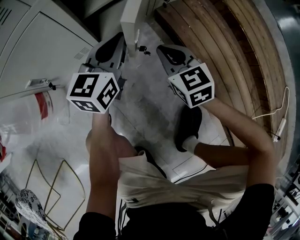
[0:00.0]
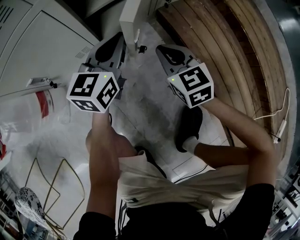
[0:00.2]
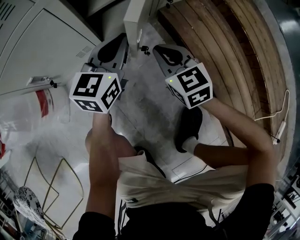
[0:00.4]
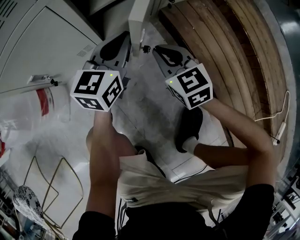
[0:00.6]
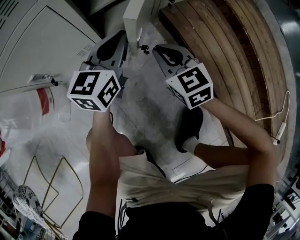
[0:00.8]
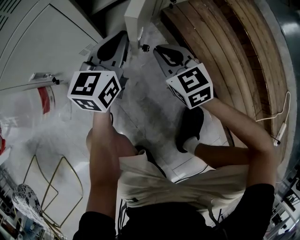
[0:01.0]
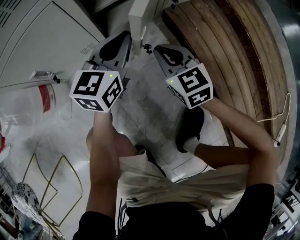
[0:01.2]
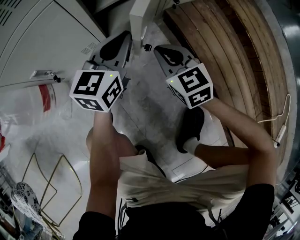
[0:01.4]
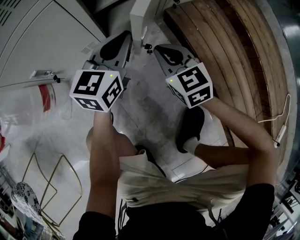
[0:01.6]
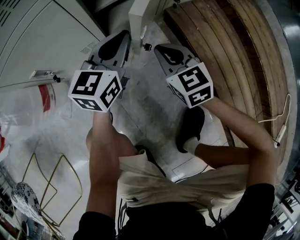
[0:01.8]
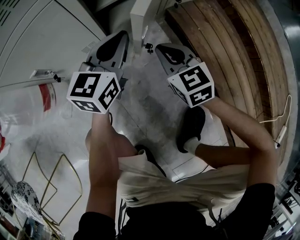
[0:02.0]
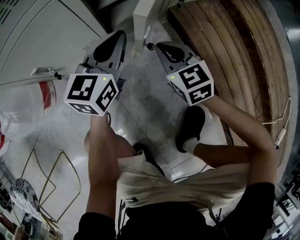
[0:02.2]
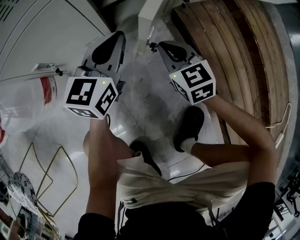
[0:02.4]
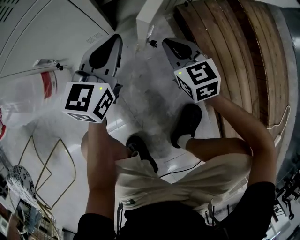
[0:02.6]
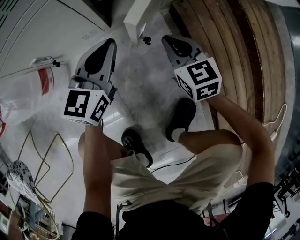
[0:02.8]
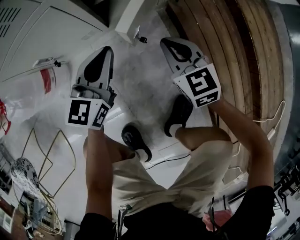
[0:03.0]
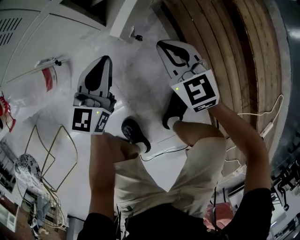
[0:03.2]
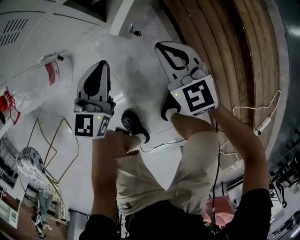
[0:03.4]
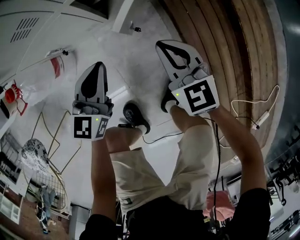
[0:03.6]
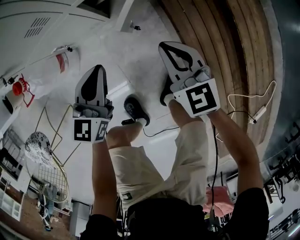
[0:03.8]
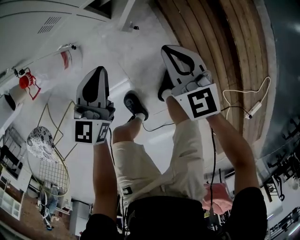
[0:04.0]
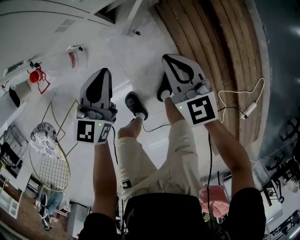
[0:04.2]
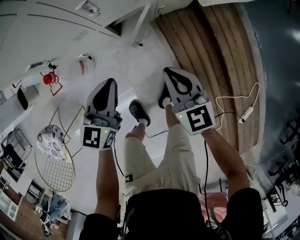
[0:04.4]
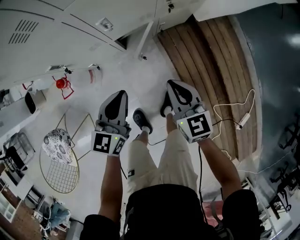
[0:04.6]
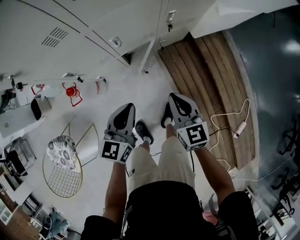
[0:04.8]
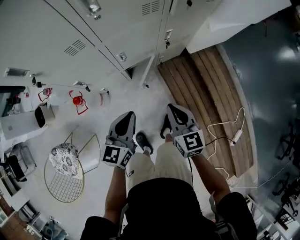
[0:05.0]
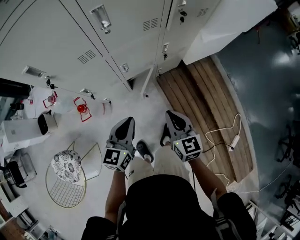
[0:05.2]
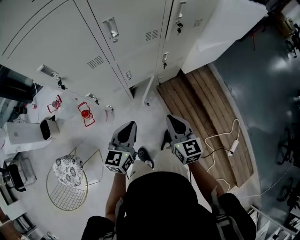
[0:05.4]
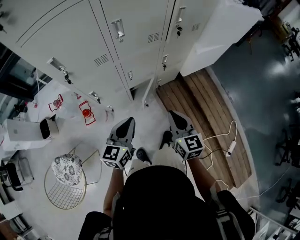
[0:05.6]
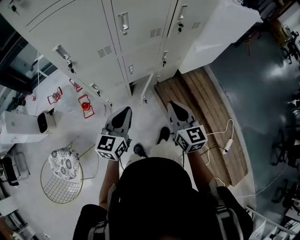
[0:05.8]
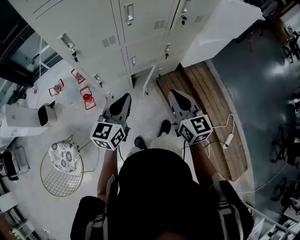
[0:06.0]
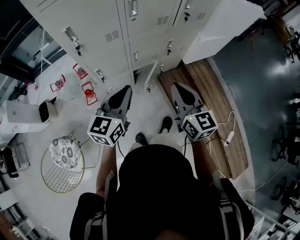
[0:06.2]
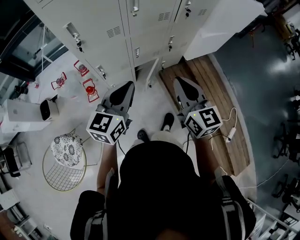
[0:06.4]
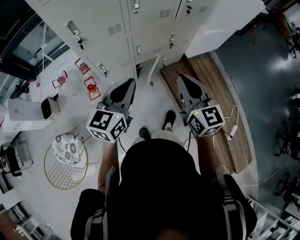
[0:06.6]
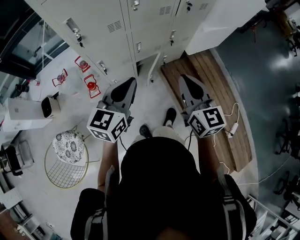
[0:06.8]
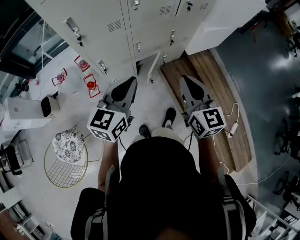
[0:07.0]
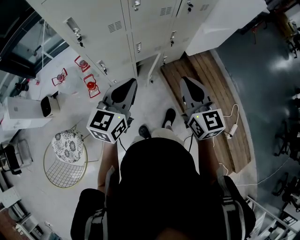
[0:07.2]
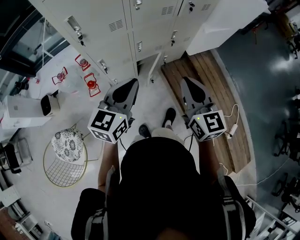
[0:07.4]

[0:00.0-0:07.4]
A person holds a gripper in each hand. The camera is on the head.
0.0 to 1.4 s: The grippers stay close to where they were, moving slightly.
1.4 to 3.0 s: The left gripper shifts by about 5 cm, while the right gripper heads upward, covering about 5 cm.
3.0 to 4.4 s: The grippers both shift upward by about 40 cm.
4.4 to 6.0 s: The grippers both shift upward by about 35 cm. The right gripper swivels roughly 20 degrees.
6.0 to 7.4 s: The right gripper moves approximately 5 cm. Meanwhile the left gripper moves about 5 cm.

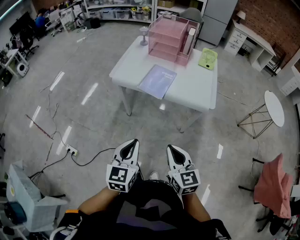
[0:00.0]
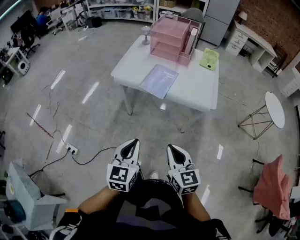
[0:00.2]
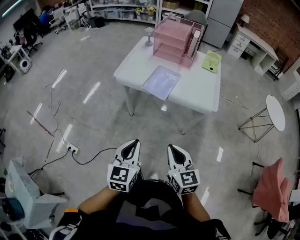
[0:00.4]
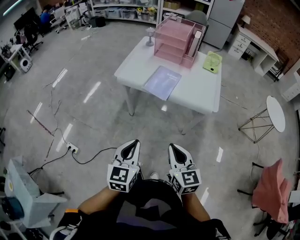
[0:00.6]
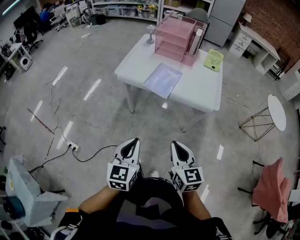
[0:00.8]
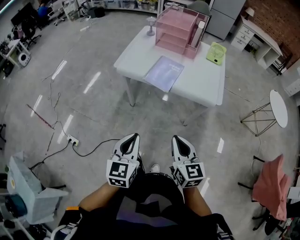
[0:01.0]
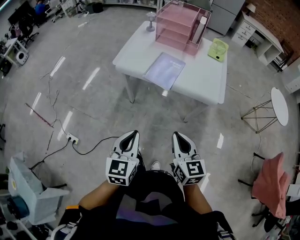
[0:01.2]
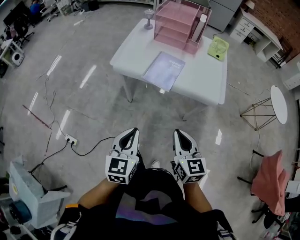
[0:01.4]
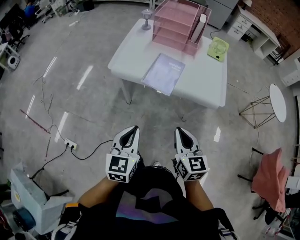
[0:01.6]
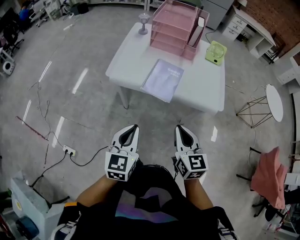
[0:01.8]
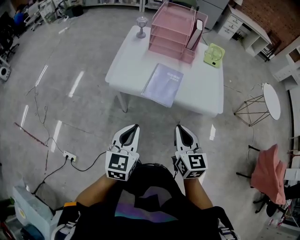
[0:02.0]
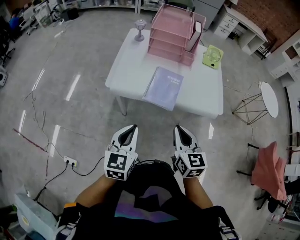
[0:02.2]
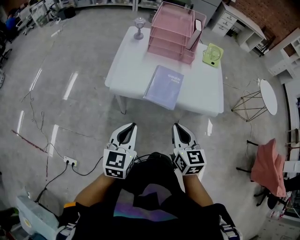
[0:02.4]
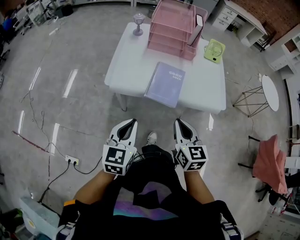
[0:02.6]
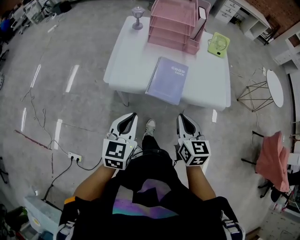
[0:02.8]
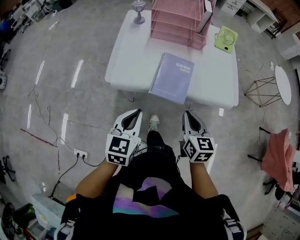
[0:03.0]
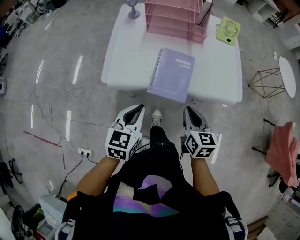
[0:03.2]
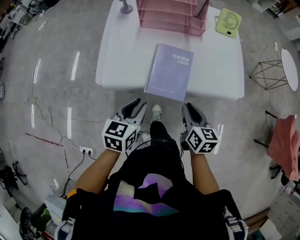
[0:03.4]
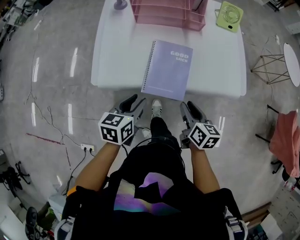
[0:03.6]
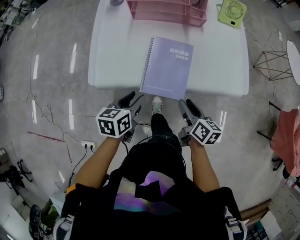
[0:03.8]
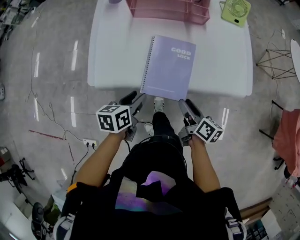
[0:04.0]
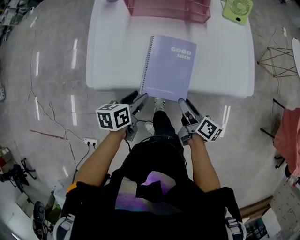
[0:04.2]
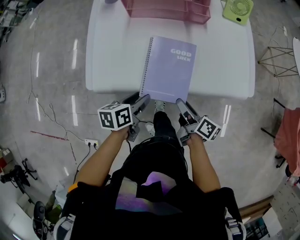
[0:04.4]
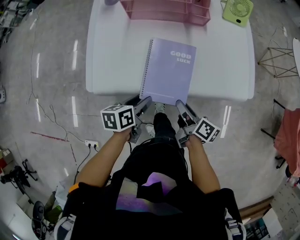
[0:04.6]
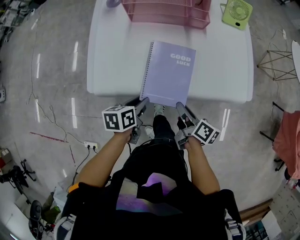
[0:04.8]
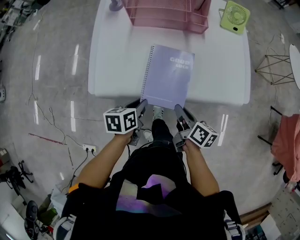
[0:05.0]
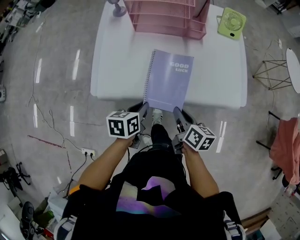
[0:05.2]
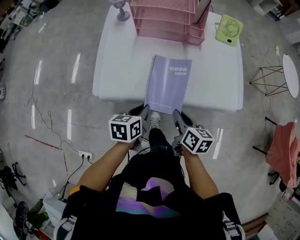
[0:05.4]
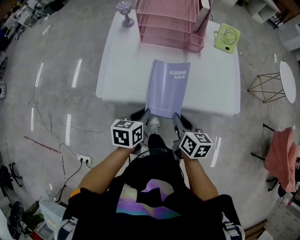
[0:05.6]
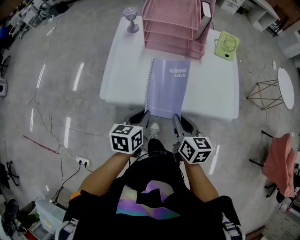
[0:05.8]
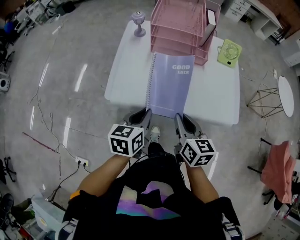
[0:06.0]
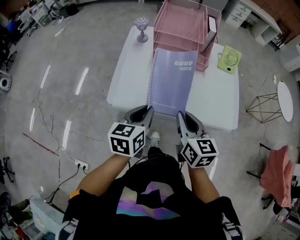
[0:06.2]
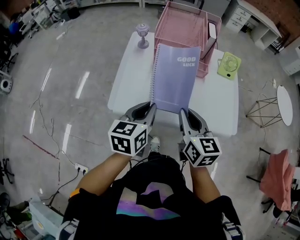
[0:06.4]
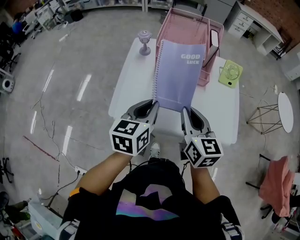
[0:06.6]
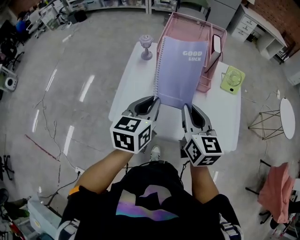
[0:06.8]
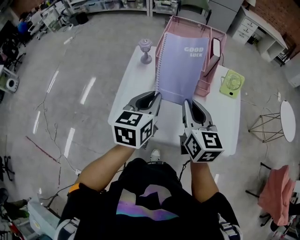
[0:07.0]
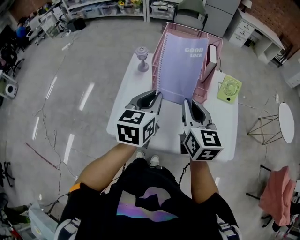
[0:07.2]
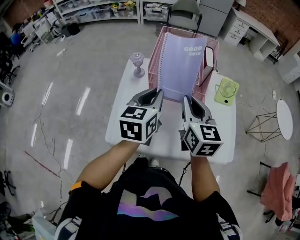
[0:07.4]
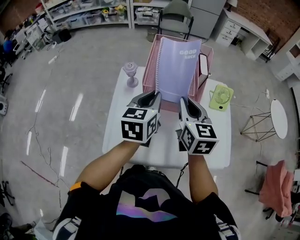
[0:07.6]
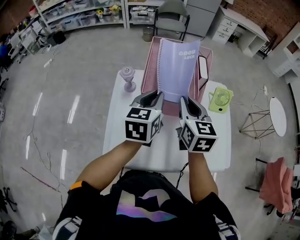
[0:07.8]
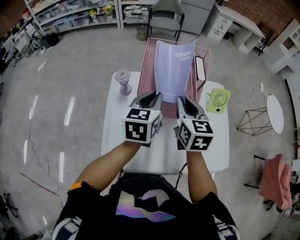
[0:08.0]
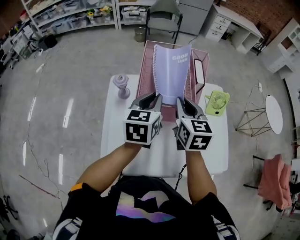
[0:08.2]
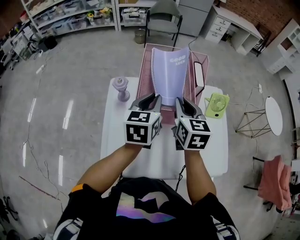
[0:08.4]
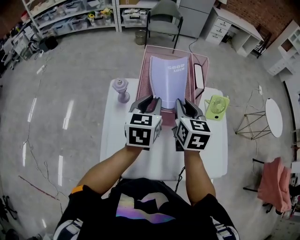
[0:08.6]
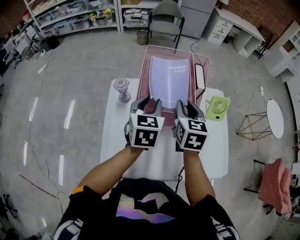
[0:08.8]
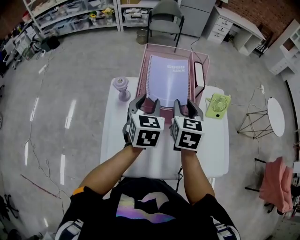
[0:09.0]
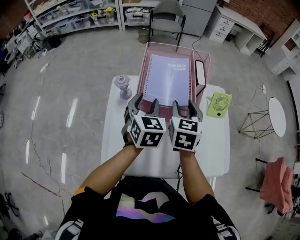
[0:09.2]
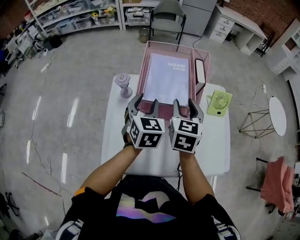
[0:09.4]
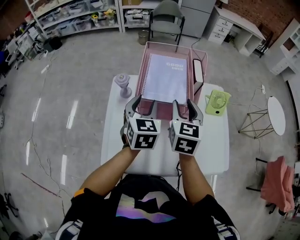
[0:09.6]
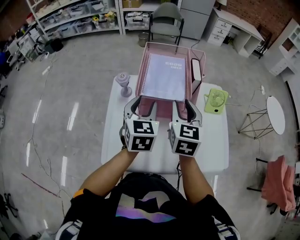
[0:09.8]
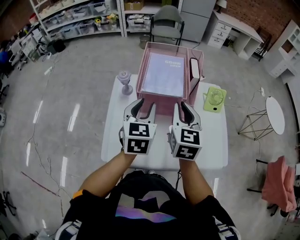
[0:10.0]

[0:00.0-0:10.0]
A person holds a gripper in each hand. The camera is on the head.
0.0 to 1.4 s: The two grippers go roughly 5 cm forward.
1.4 to 2.8 s: Both grippers travel together forward and to the left, roughly 20 cm.
2.8 to 4.2 s: The two grippers go about 25 cm downward and forward. The right gripper rotates around the line of its fingers by about 60 degrees, clockwise from behind, and opens up; the left gripper swivels approximately 50 degrees, and opens.
4.2 to 5.8 s: The grippers both shift upward by about 10 cm. The right gripper rotates around the line of its fingers by about 40 degrees, counterclockwise from behind, and closes. The left gripper closes.
5.8 to 7.2 s: The two grippers go roughly 25 cm forward and upward. The left gripper rotates approximately 20 degrees. Meanwhile the right gripper turns by roughly 20 degrees.
7.2 to 8.6 s: The two grippers go approximately 20 cm forward.
8.6 to 10.0 s: Both grippers travel together backward, approximately 10 cm. The right gripper opens, then closes again.

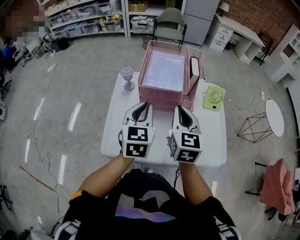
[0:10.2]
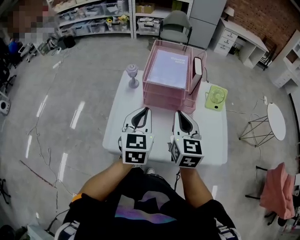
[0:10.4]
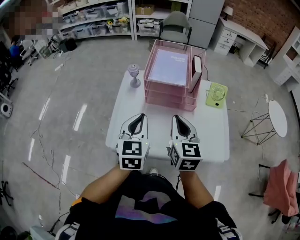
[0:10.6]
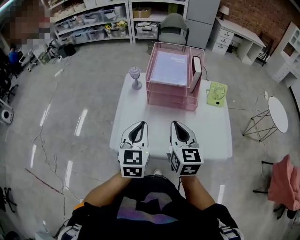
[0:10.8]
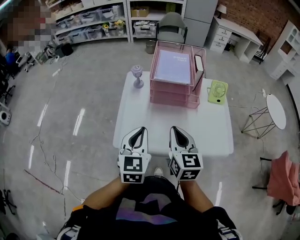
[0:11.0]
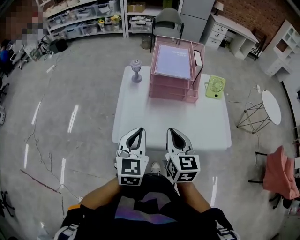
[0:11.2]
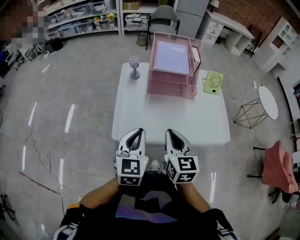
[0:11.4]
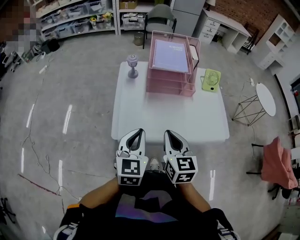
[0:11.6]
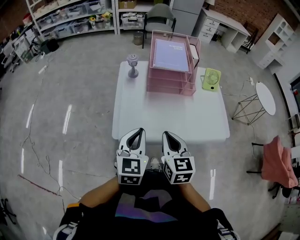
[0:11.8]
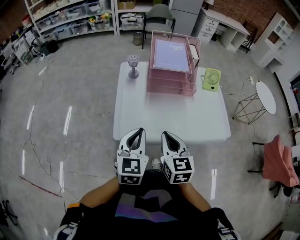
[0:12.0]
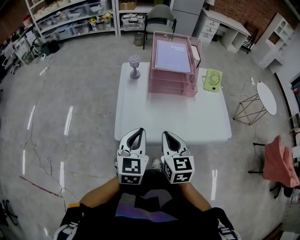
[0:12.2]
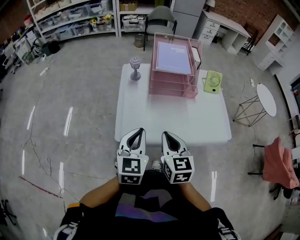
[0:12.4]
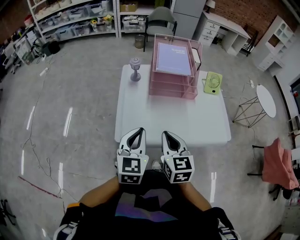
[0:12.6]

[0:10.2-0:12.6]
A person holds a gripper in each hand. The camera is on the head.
10.2 to 11.4 s: The grippers both shift backward and to the left by about 20 cm.
11.4 to 12.6 s: The grippers move only a little.

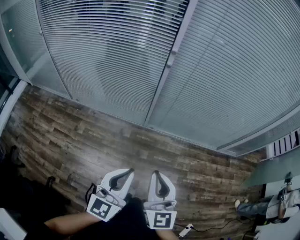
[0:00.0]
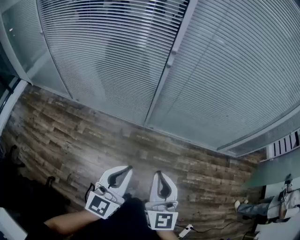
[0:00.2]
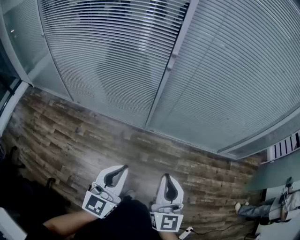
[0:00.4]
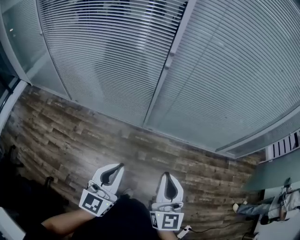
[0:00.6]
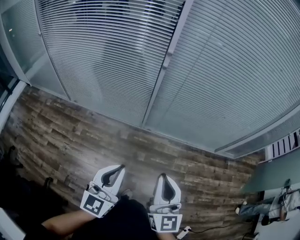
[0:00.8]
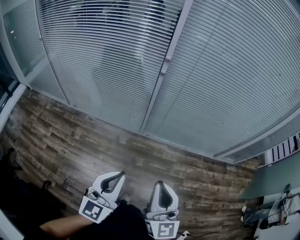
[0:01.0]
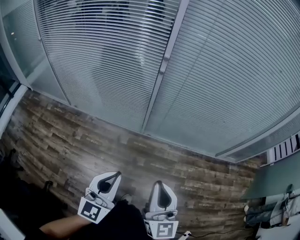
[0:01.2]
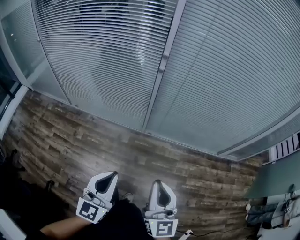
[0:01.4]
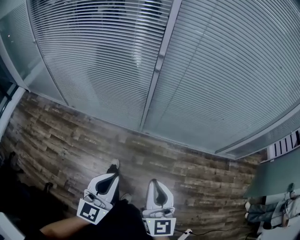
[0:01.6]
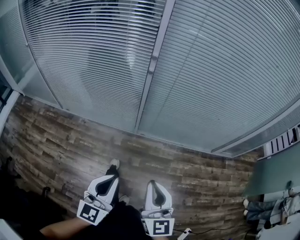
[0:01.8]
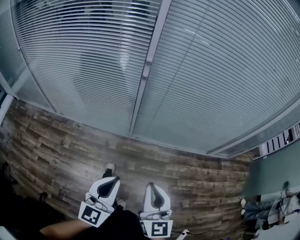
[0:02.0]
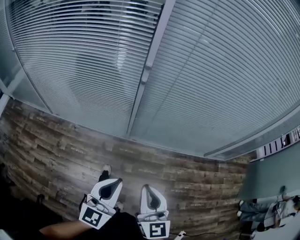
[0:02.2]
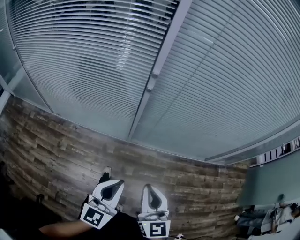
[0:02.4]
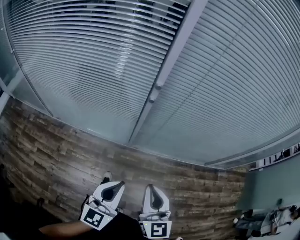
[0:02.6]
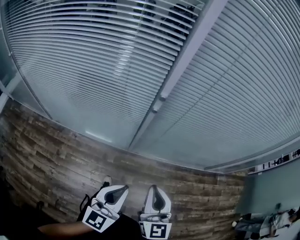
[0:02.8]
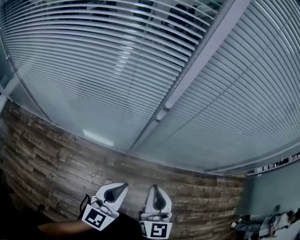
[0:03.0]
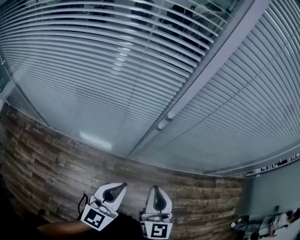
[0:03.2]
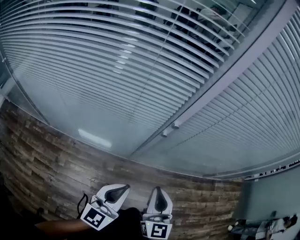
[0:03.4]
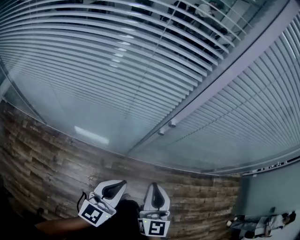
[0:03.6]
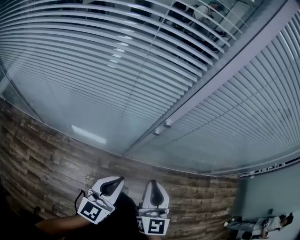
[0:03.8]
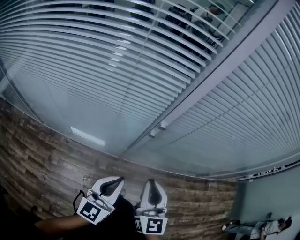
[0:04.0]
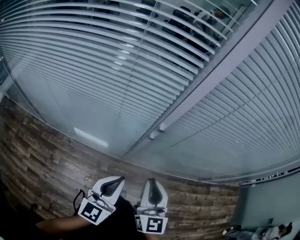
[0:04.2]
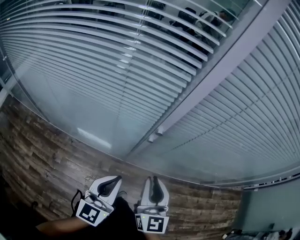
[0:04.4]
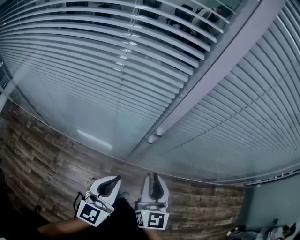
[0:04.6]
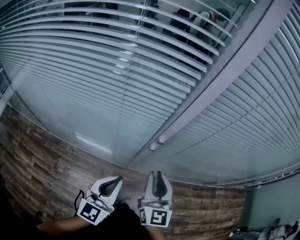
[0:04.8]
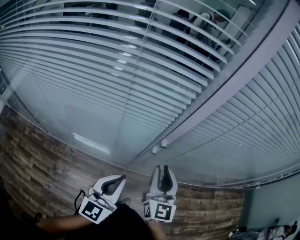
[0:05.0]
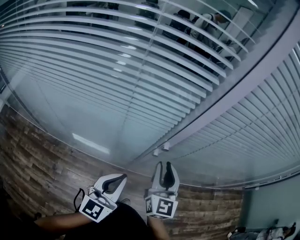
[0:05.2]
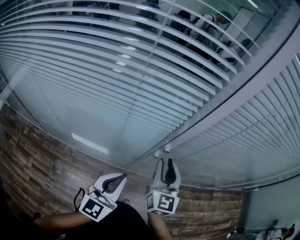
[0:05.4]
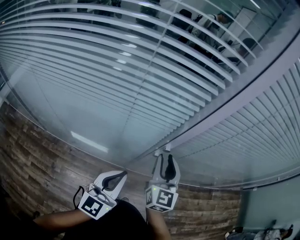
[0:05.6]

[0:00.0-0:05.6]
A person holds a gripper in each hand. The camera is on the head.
0.0 to 1.4 s: The right gripper is displaced to the right by about 5 cm.
1.4 to 2.8 s: Both grippers travel together forward, about 20 cm.
2.8 to 4.2 s: The grippers both shift forward by some 15 cm.
4.2 to 5.6 s: The right gripper travels forward by roughly 15 cm, and opens its fingers. The left gripper moves forward, some 10 cm.
